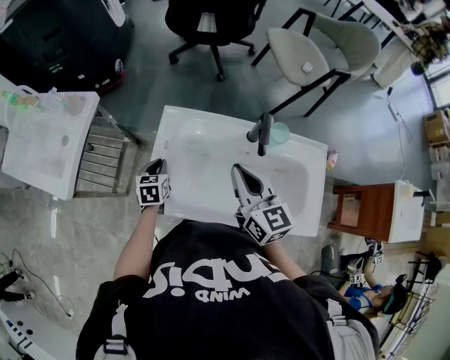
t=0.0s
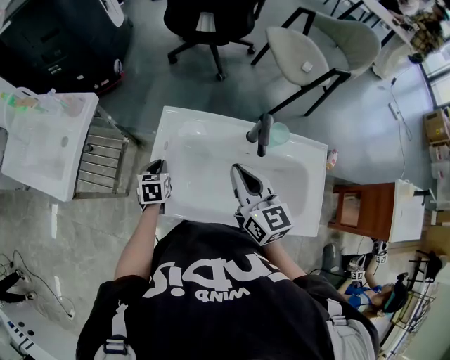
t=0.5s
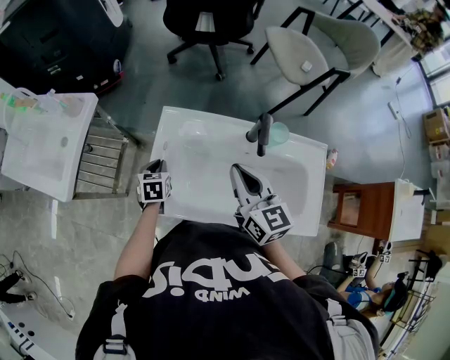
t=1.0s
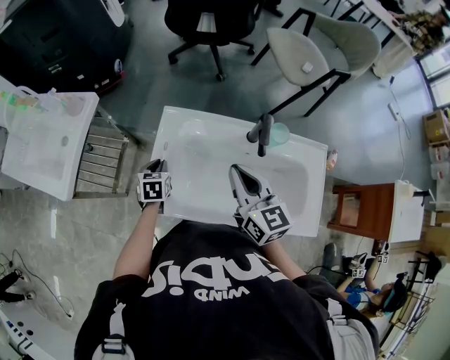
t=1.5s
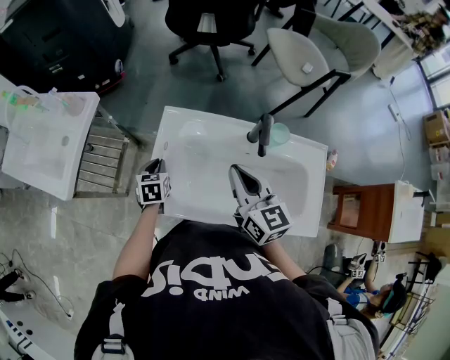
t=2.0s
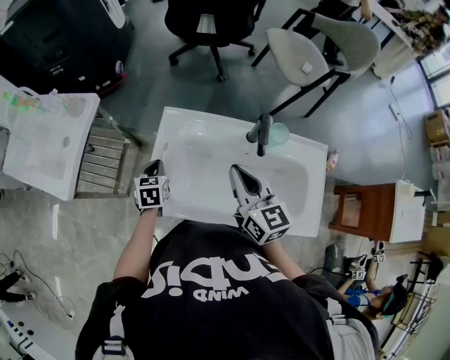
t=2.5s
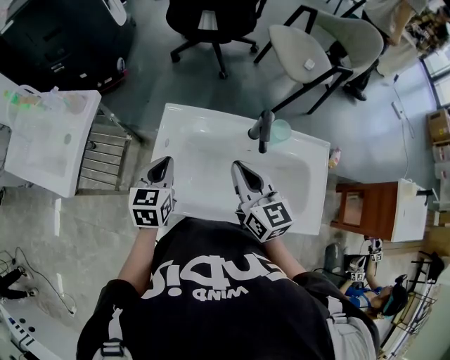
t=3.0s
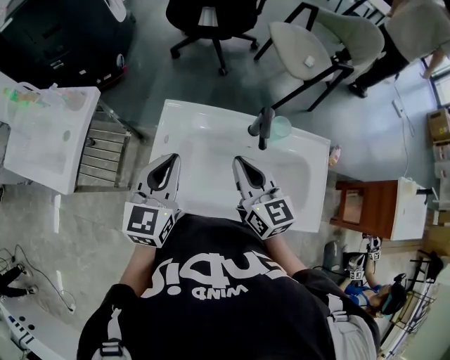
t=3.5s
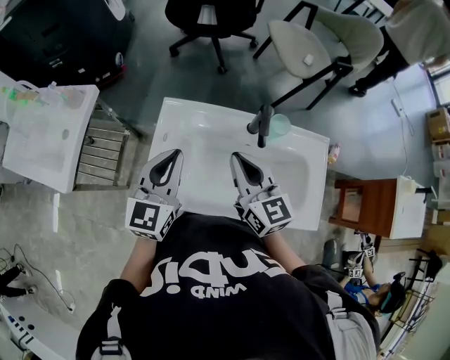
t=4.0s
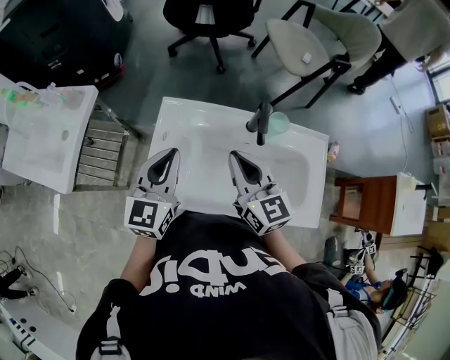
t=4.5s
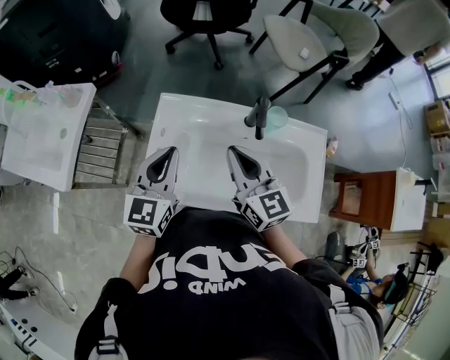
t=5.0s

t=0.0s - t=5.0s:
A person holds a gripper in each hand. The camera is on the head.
t=0.0s - t=2.5s: The grippers make only small movements.
t=2.5s - t=5.0s: The left gripper goes roughly 20 cm upward and to the right, and angles its fingers upward, by about 30 degrees.

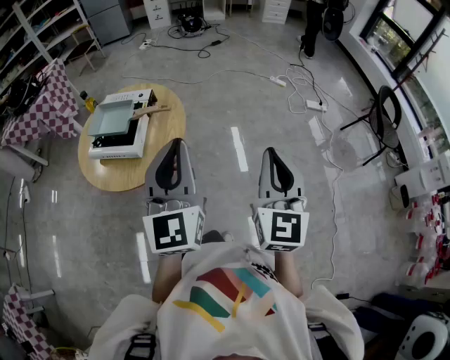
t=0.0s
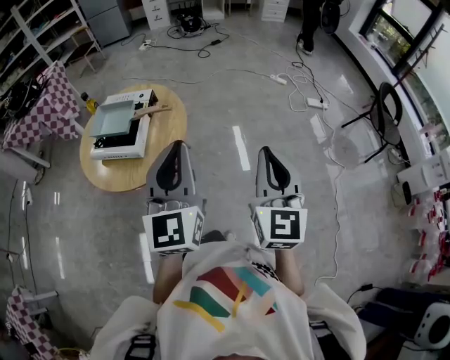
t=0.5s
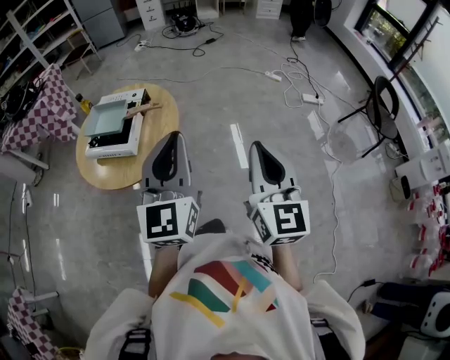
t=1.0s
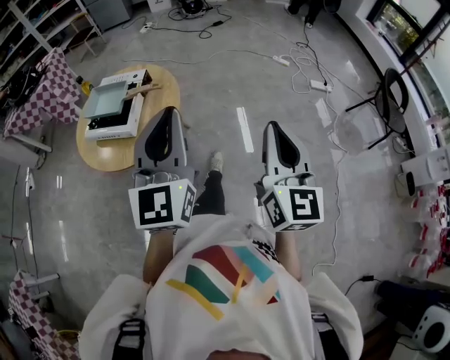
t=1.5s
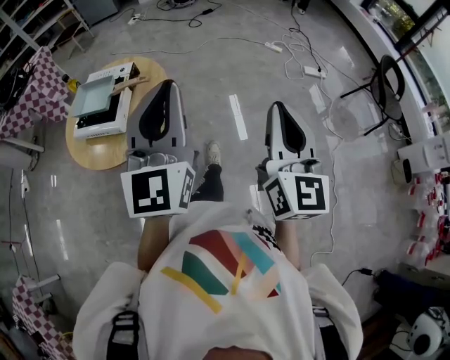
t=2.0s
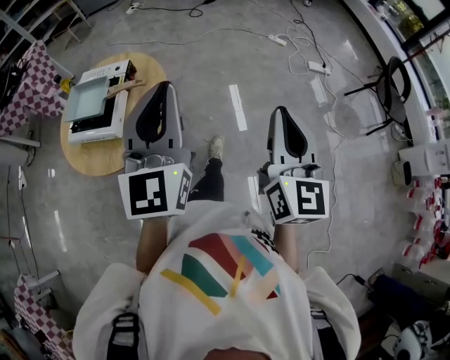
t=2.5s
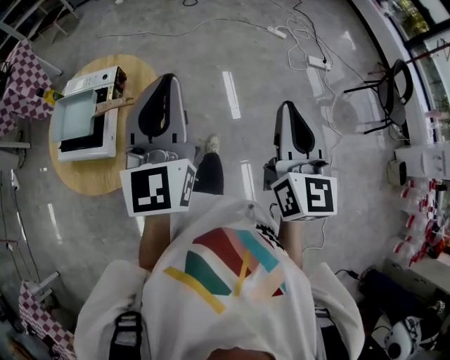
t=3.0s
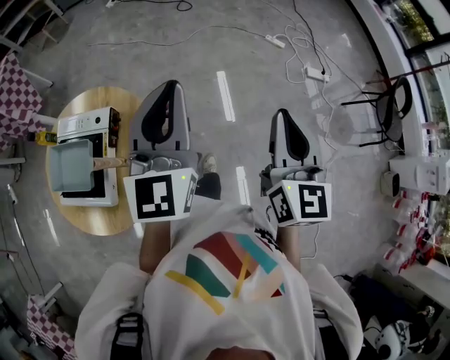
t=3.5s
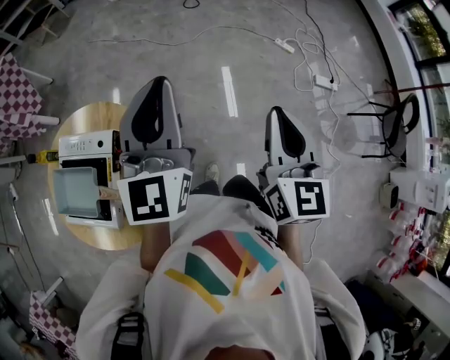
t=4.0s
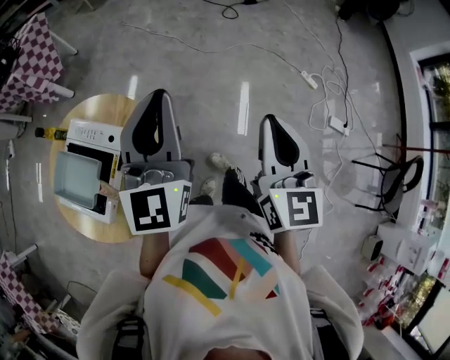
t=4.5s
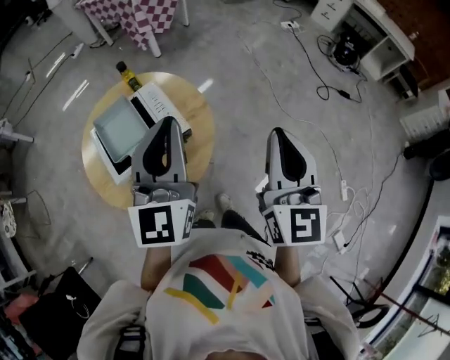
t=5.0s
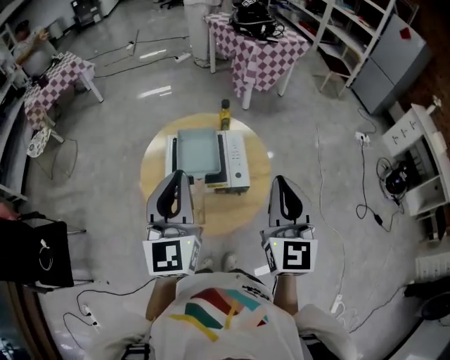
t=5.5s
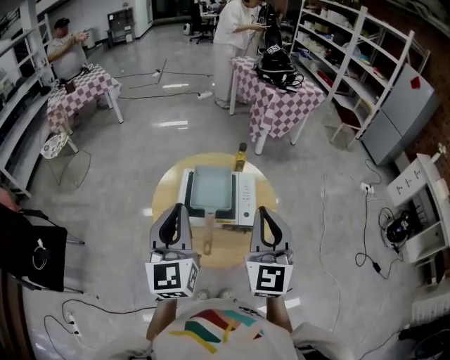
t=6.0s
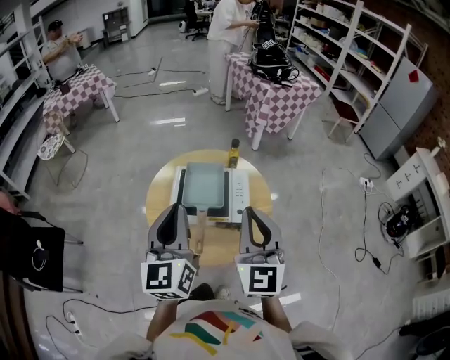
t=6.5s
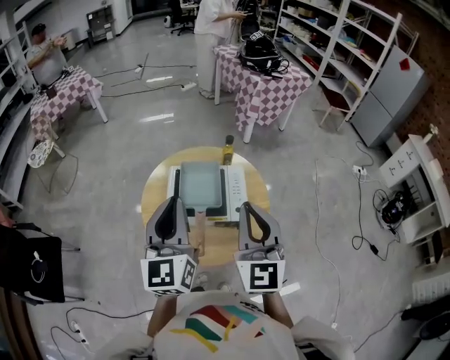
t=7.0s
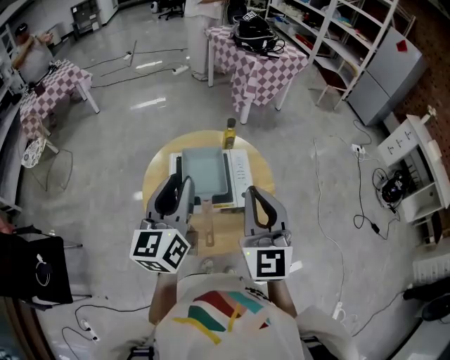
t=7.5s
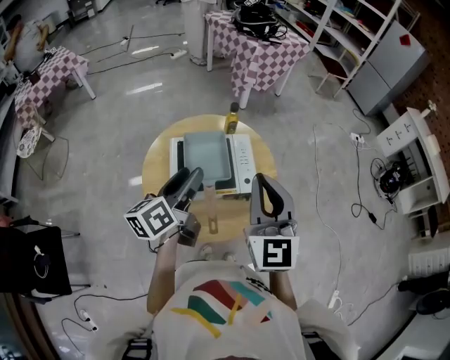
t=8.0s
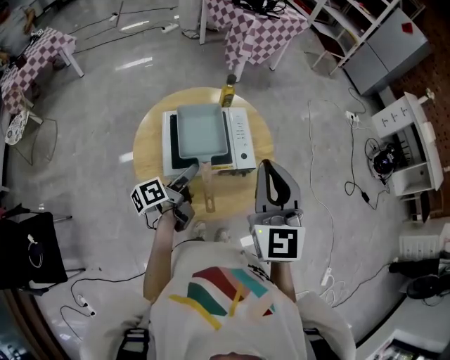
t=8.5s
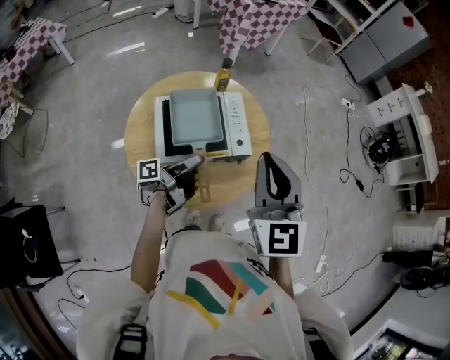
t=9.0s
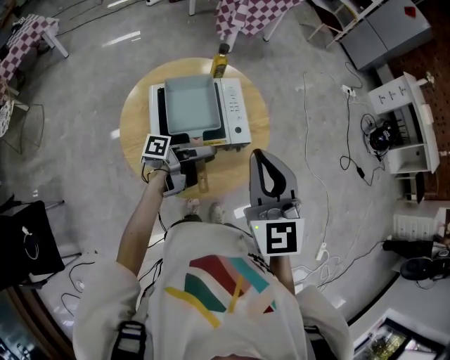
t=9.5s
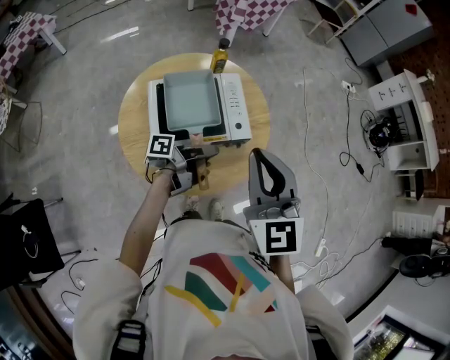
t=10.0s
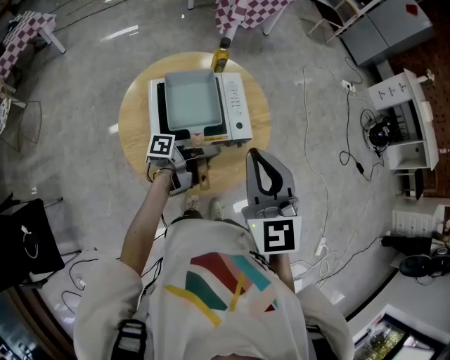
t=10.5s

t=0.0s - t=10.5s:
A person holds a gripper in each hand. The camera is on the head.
t=0.0s - t=2.0s: Both grippers move to the right, about 5 cm.
t=2.0s - t=4.0s: The pair of grippers is taken forward, roughly 50 cm.
t=4.0s - t=6.5s: The right gripper shifts by some 40 cm, and turns by approximately 90 degrees. The left gripper moves roughly 35 cm, and swivels approximately 90 degrees.
t=6.5s - t=8.5s: The left gripper heads downward, covering about 25 cm, rolls counterclockwise, seen from behind, by approximately 70 degrees, and opens.
t=8.5s - t=10.5s: The right gripper travels downward by approximately 5 cm. The left gripper shifts about 10 cm to the right, turns by roughly 40 degrees, and closes.

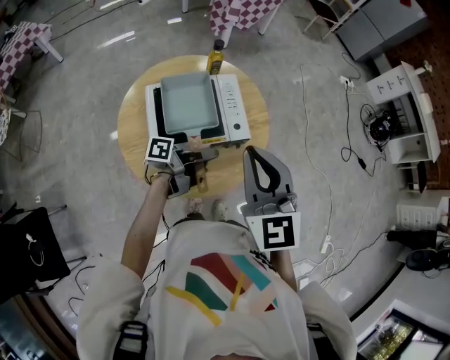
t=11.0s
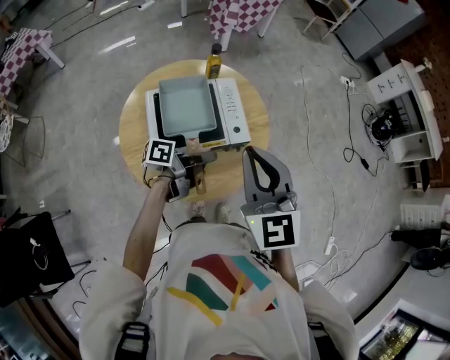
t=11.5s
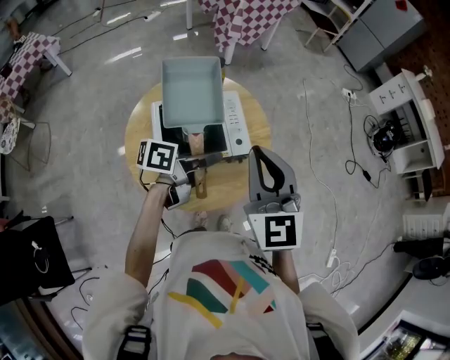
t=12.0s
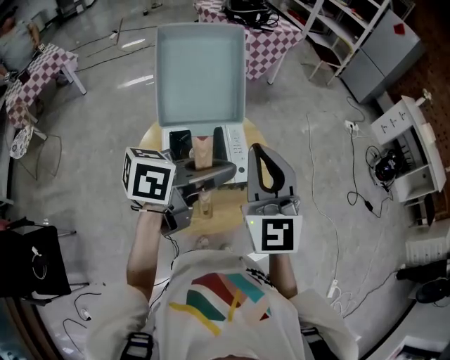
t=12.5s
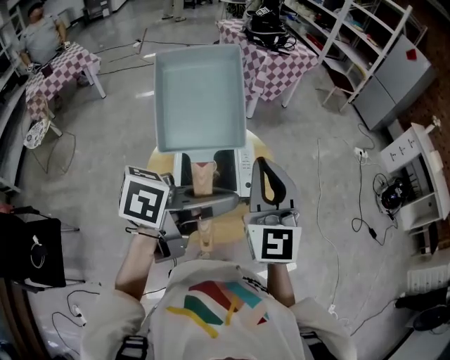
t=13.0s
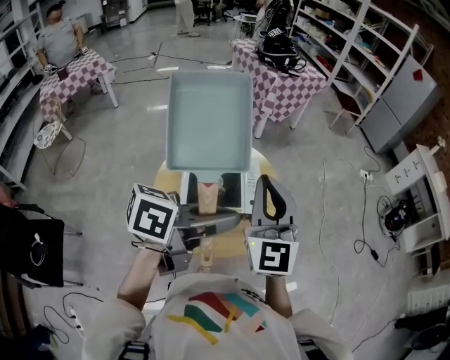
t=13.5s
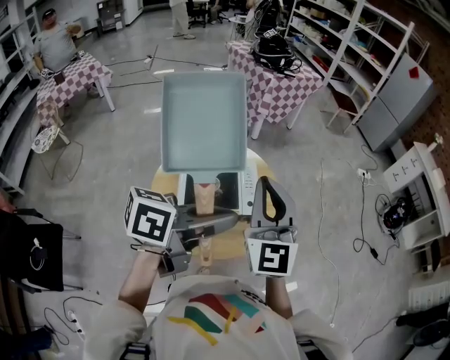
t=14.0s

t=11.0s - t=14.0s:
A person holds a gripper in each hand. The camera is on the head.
t=11.0s - t=12.5s: The left gripper goes roughly 25 cm upward, and rotates around the line of its fingers by roughly 50 degrees, clockwise from behind. The right gripper travels upward by approximately 10 cm.
t=12.5s - t=14.0s: The left gripper heads backward, covering roughly 5 cm.

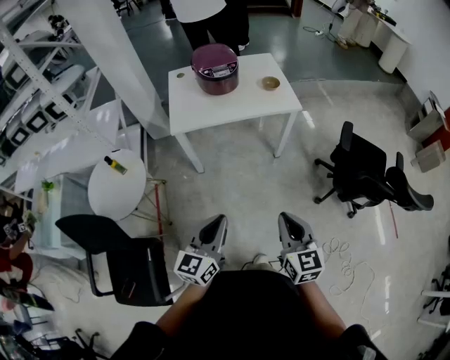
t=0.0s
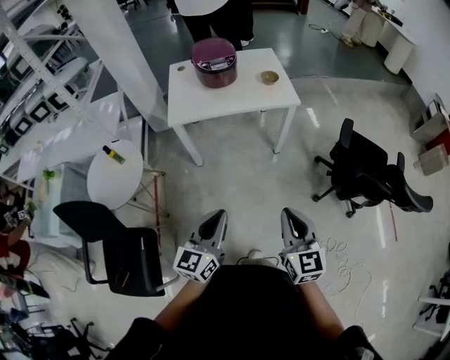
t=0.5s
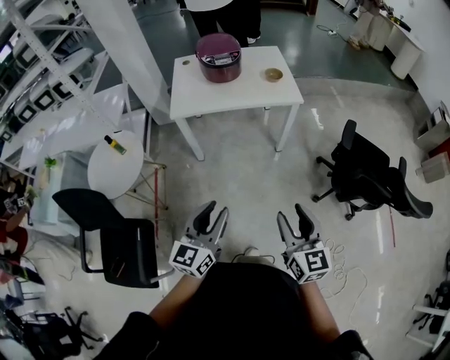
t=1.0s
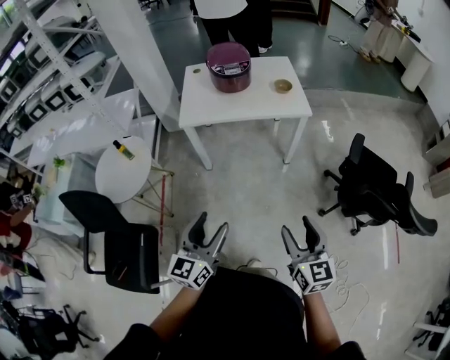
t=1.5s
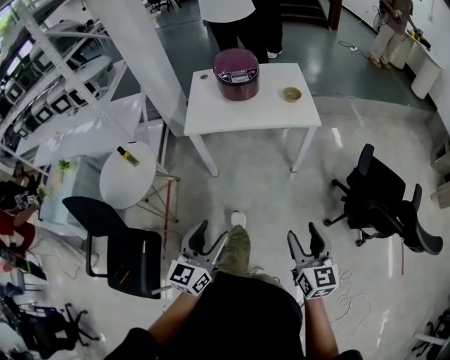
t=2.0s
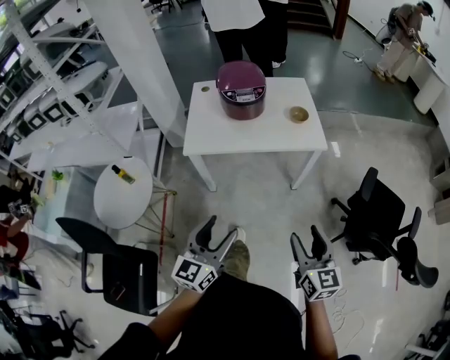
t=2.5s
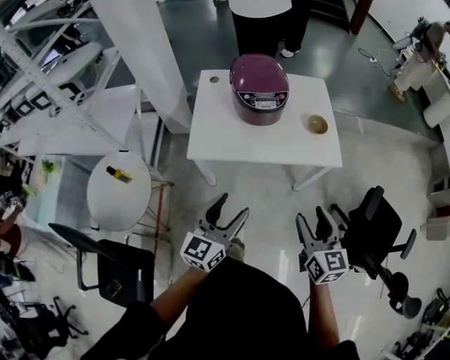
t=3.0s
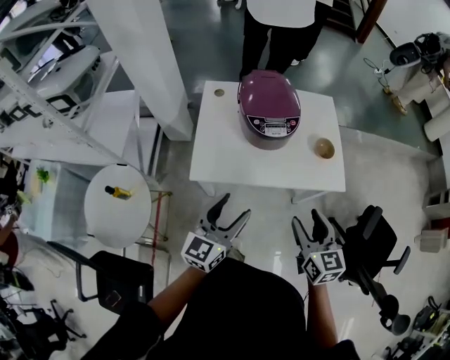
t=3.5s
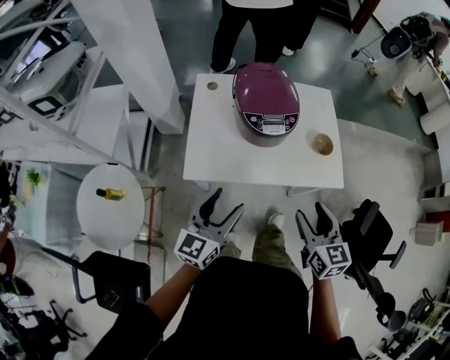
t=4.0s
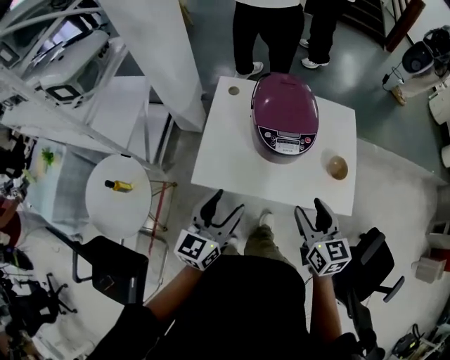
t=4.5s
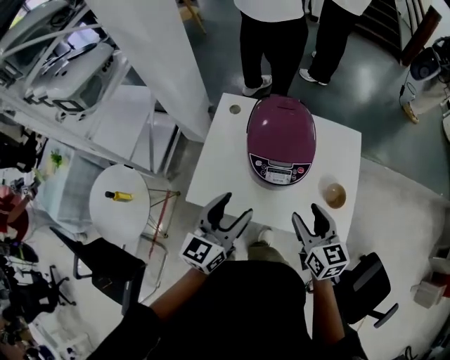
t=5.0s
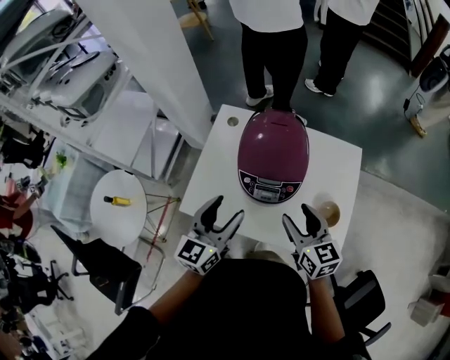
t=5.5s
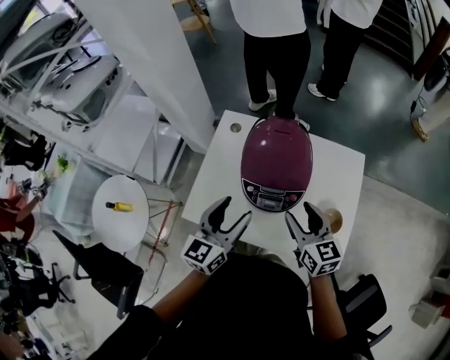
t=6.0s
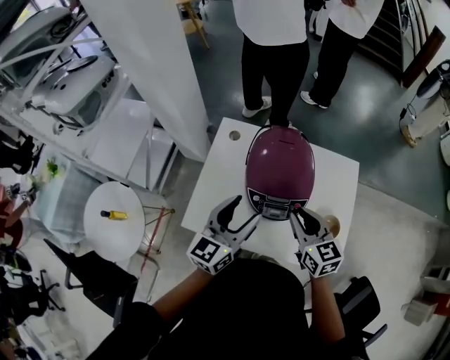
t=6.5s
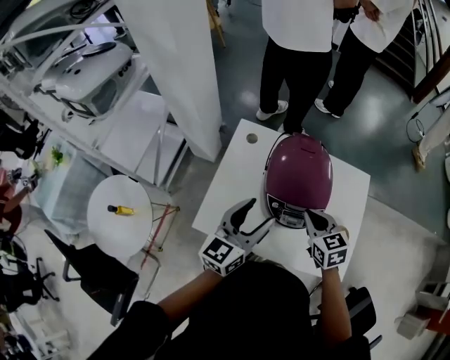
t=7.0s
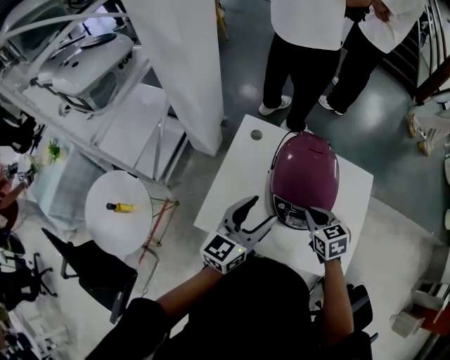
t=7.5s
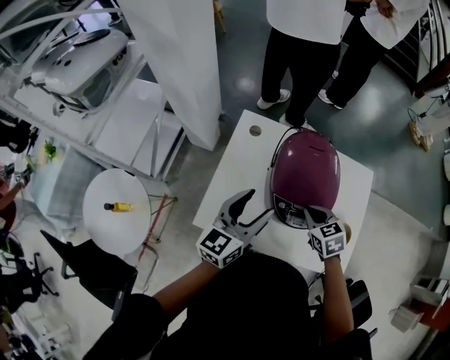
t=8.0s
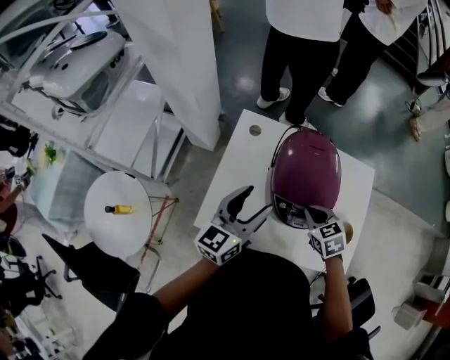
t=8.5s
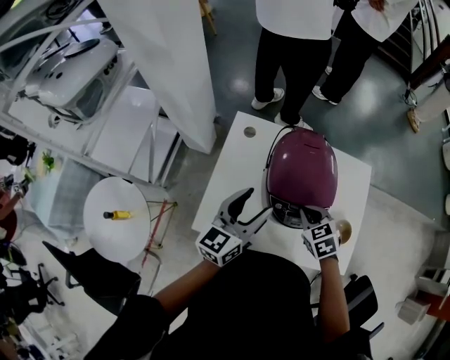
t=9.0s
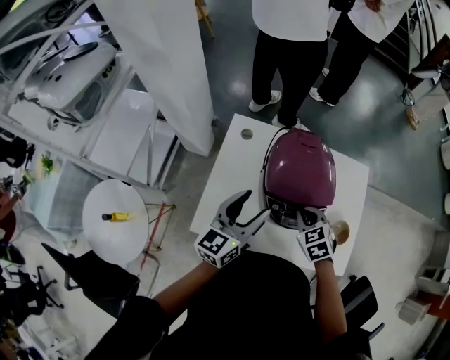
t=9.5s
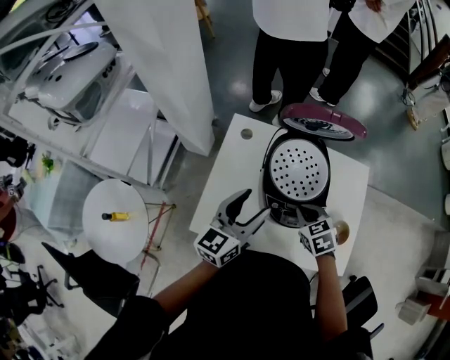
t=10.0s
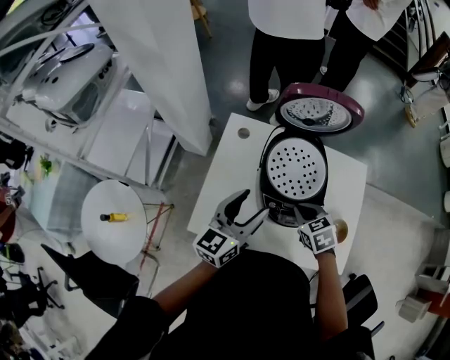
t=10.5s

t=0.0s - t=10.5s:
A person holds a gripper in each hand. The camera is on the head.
t=0.0s - t=2.0s: The left gripper opens up, while the right gripper heads to the right, covering about 10 cm, and opens up.
t=2.0s - t=4.0s: The two grippers travel together, forward, about 50 cm.
t=4.0s - t=6.5s: Both grippers travel together forward, about 25 cm. The right gripper turns by roughly 20 degrees, and closes up.
t=6.5s - t=8.5s: The right gripper moves downward, about 10 cm, changes its angle by about 30 degrees, and closes, while the left gripper moves to the left, about 5 cm.
t=8.5s - t=10.5s: The grippers stay close to where they were, moving slightly.
